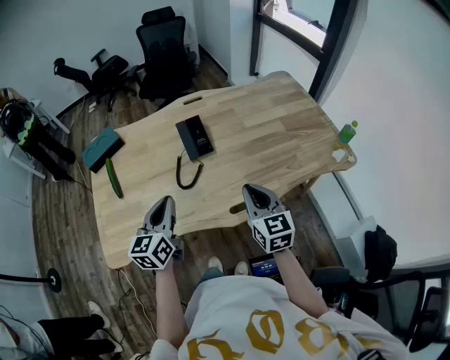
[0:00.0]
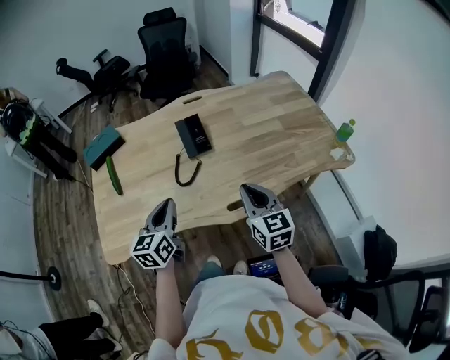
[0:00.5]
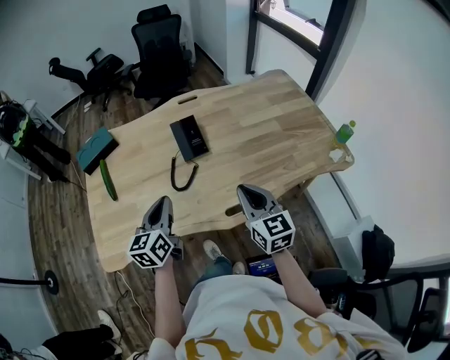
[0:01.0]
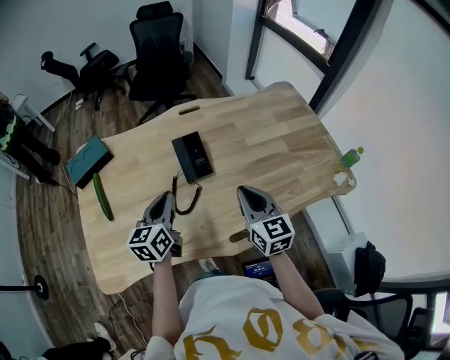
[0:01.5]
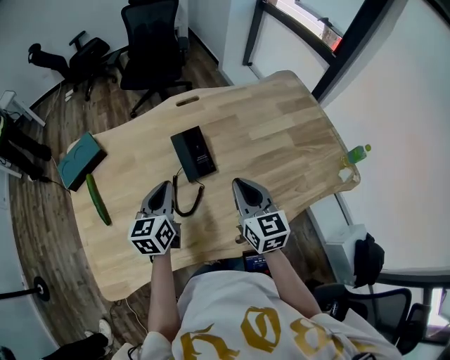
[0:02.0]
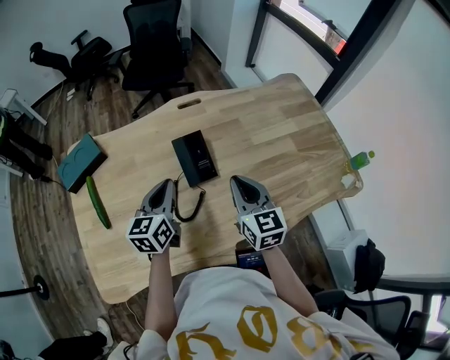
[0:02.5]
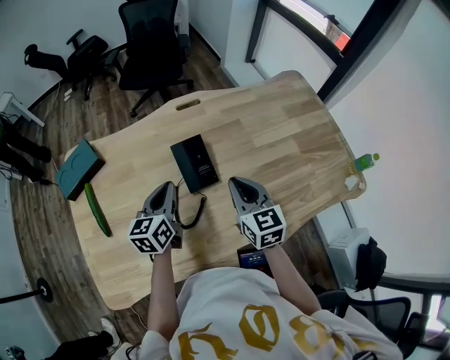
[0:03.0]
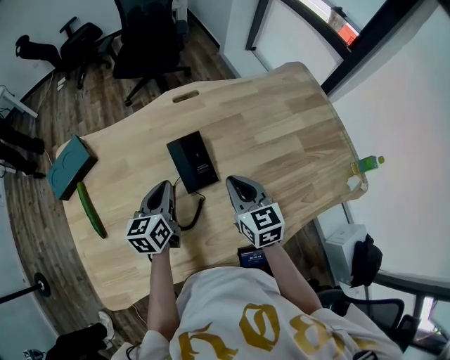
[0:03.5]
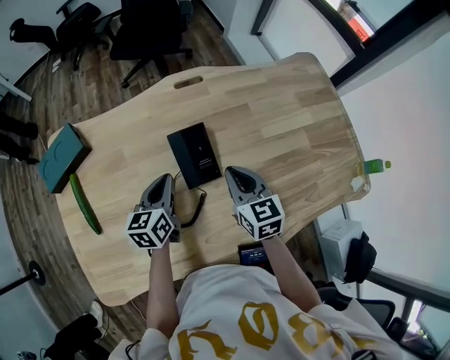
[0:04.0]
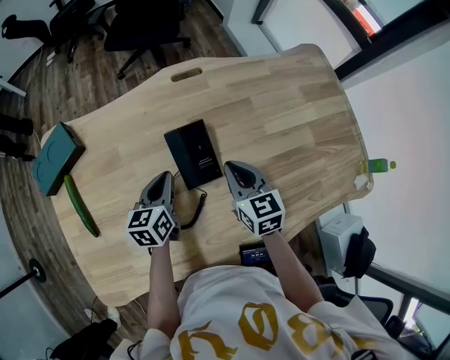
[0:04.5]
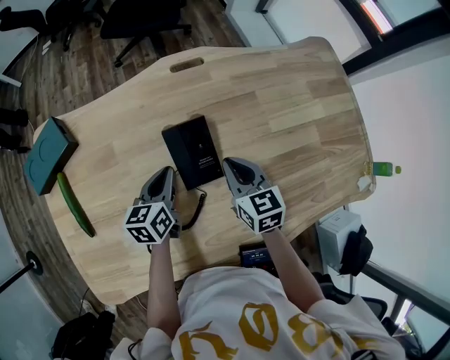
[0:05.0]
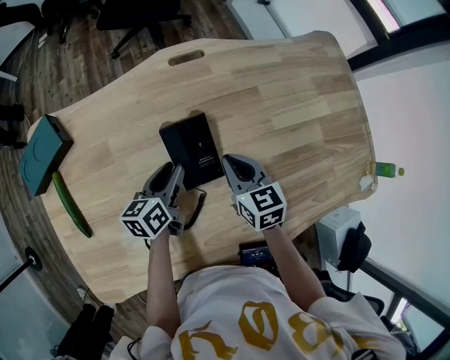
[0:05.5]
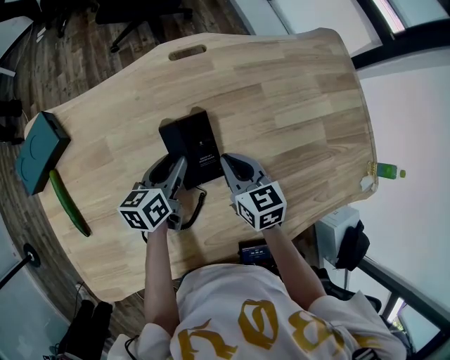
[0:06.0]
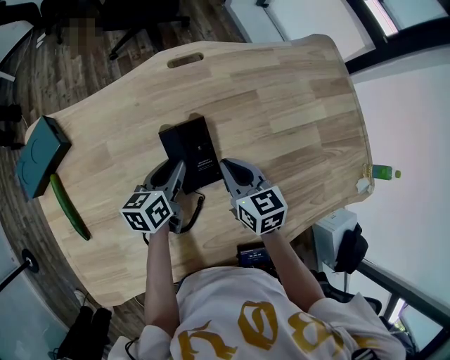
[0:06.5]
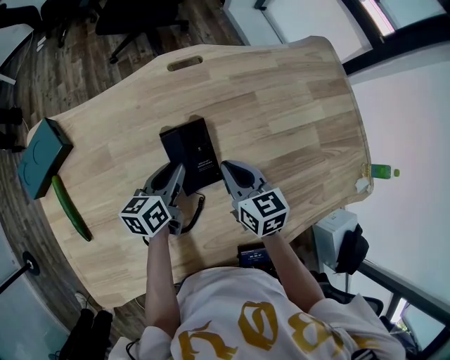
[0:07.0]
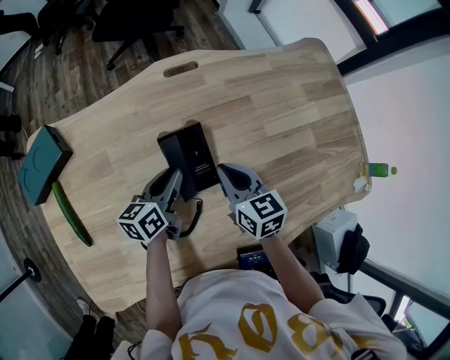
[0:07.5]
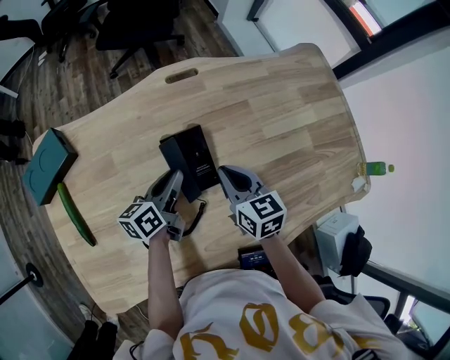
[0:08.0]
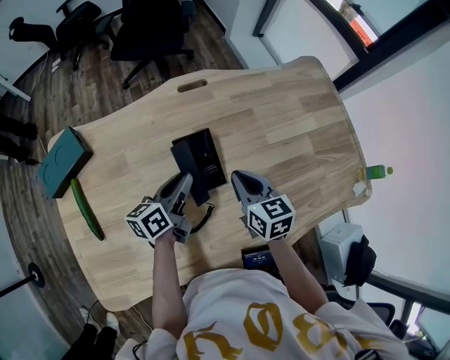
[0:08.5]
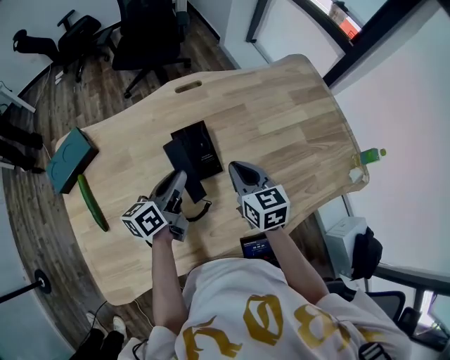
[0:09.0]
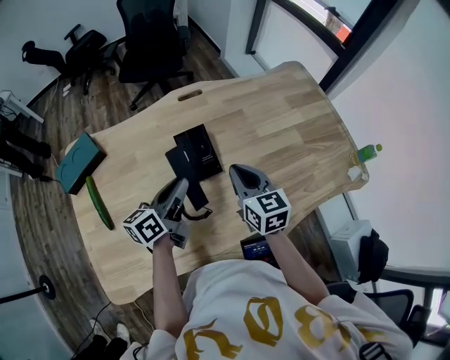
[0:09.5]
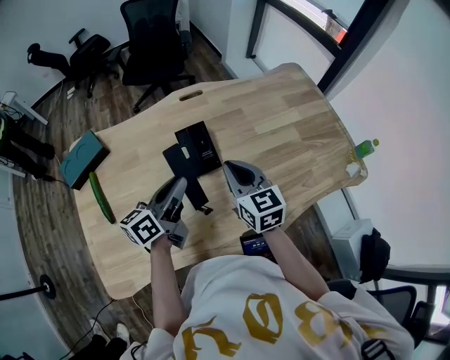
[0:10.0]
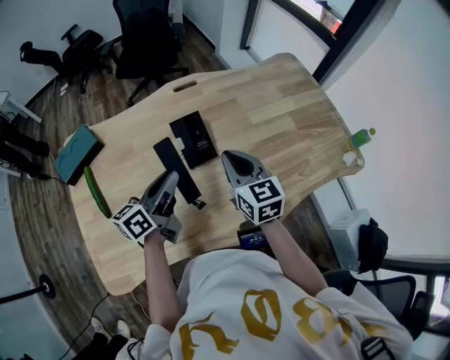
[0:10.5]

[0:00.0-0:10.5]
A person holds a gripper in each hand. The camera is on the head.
0:00.0 to 0:02.0: The grippers both shift forward by some 15 cm.
0:02.0 to 0:04.0: The right gripper goes approximately 15 cm forward and downward. The left gripper goes approximately 10 cm downward and forward.
0:04.0 to 0:06.5: The grippers both shift downward by approximately 5 cm. The left gripper opens its fingers.
0:06.5 to 0:08.5: The grippers both shift upward by roughly 5 cm.
0:08.5 to 0:10.5: The left gripper travels backward and upward by some 15 cm, while the right gripper moves upward and backward, approximately 10 cm.

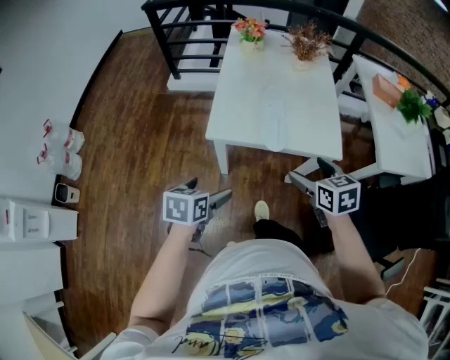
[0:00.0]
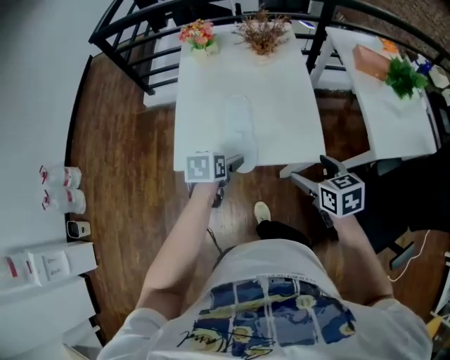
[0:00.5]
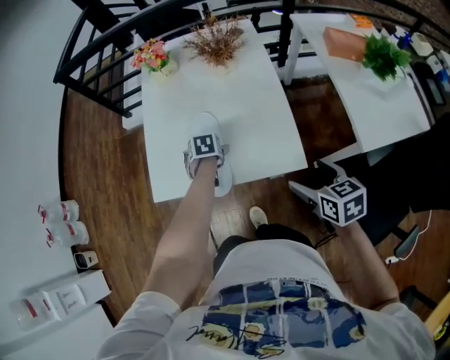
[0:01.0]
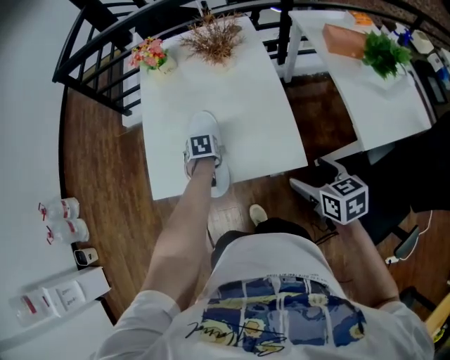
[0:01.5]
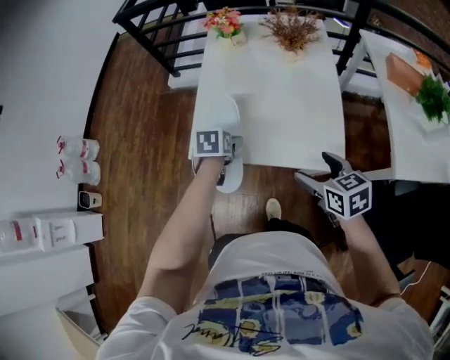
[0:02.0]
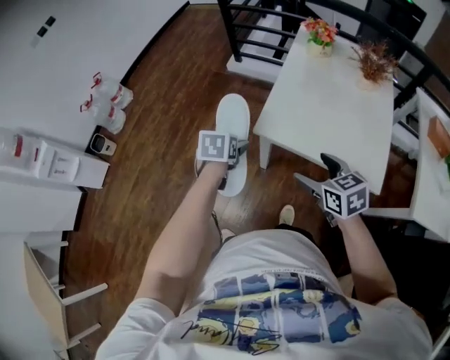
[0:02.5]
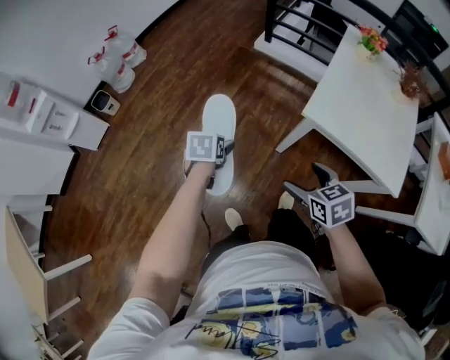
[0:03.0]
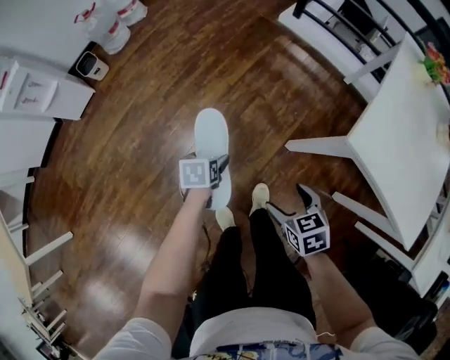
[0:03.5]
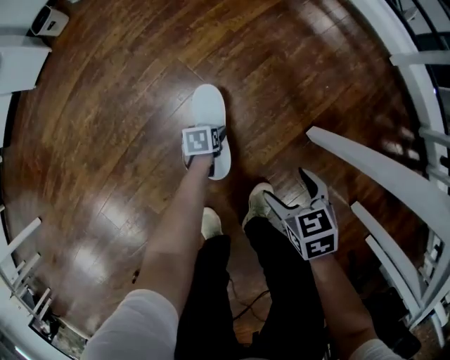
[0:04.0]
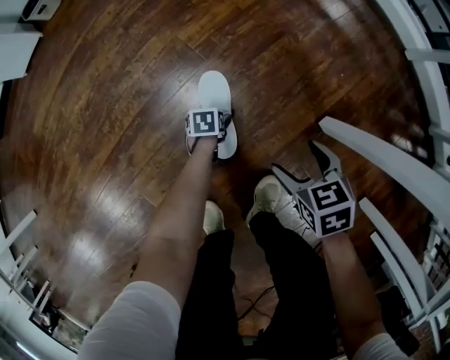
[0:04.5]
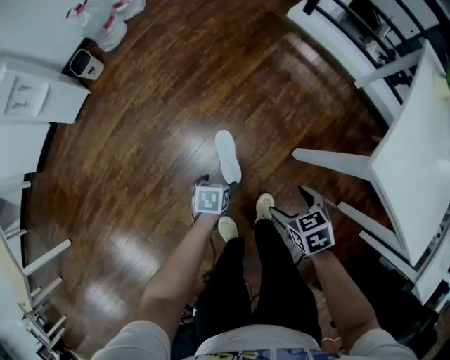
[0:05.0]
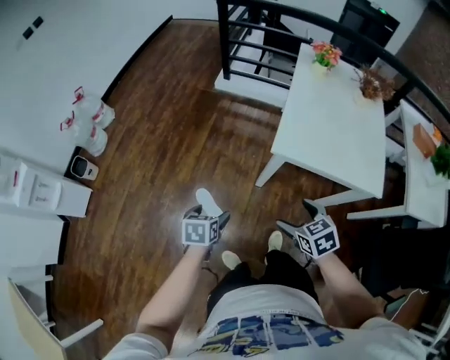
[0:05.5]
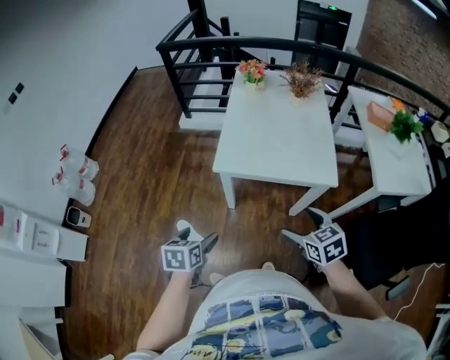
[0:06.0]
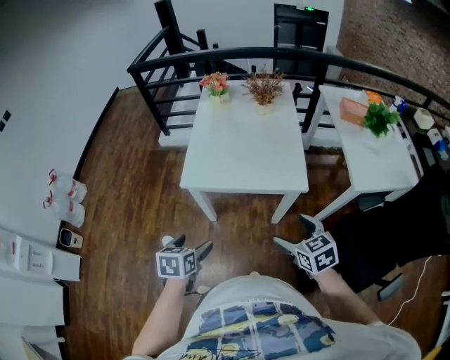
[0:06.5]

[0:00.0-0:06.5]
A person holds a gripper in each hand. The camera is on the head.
0:00.0 to 0:02.0: The left gripper is displaced forward and to the right by roughly 30 cm. The right gripper travels to the right and forward by some 20 cm.
0:02.0 to 0:04.5: The two grippers travel together, roughly 60 cm. The grippers both shift downward by some 80 cm. The left gripper rotates around the line of its fingers by approximately 50 degrees, counterclockwise from behind; the right gripper changes its angle by some 50 degrees.
0:04.5 to 0:06.5: The pair of grippers is taken approximately 60 cm. Both grippers move upward, some 80 cm. The right gripper rotates some 50 degrees. Meanwhile the left gripper rolls clockwise, seen from behind, by some 50 degrees.

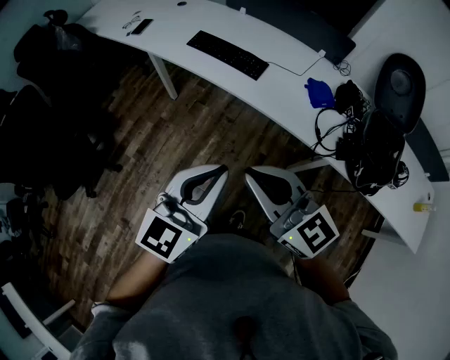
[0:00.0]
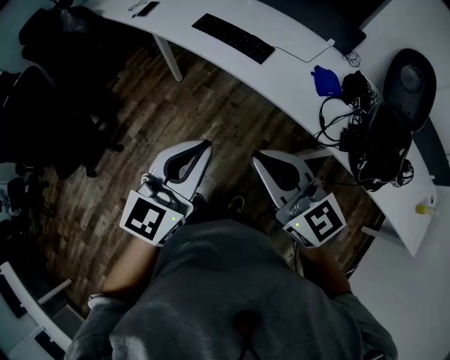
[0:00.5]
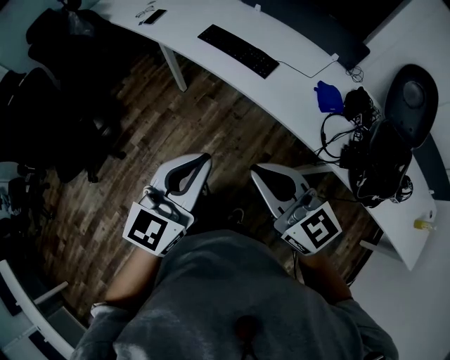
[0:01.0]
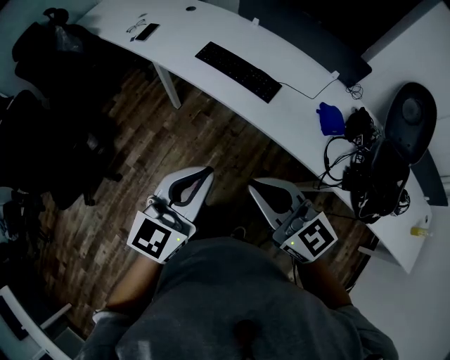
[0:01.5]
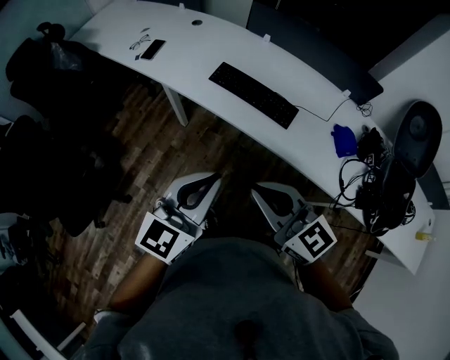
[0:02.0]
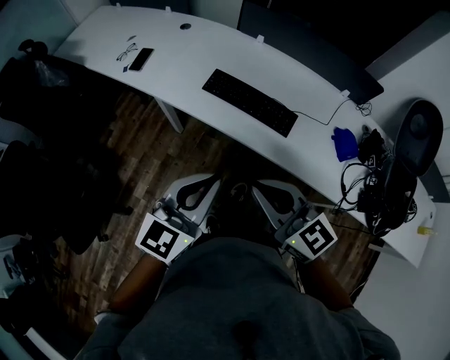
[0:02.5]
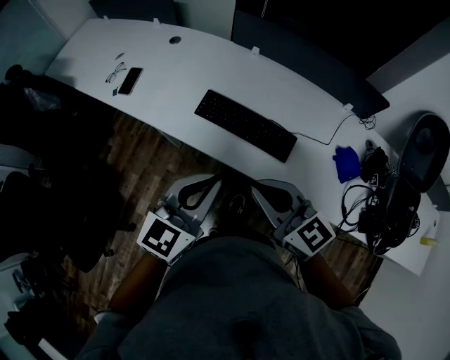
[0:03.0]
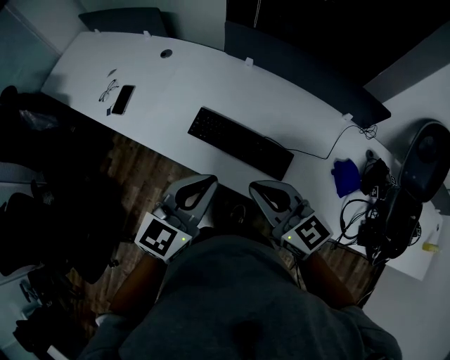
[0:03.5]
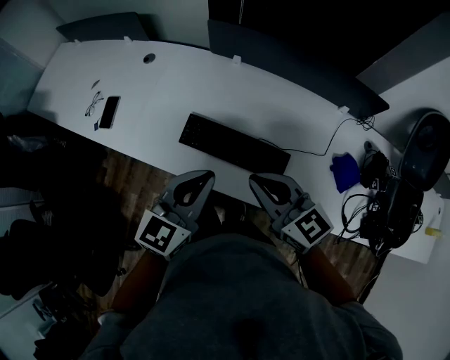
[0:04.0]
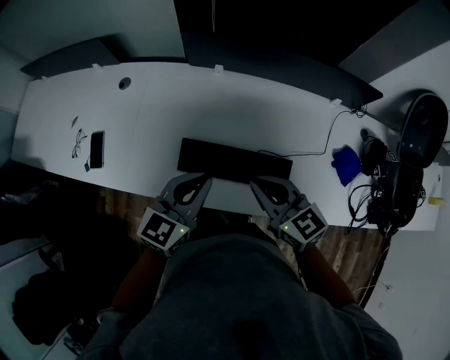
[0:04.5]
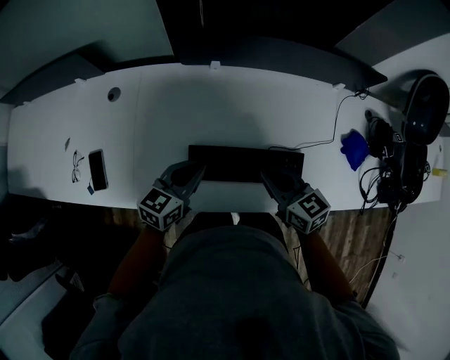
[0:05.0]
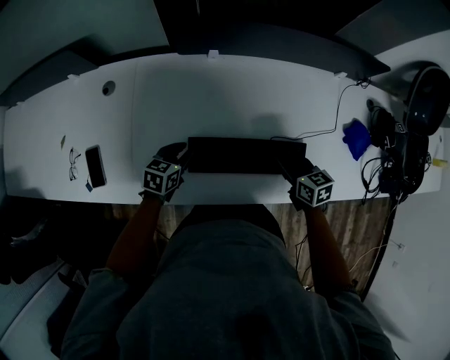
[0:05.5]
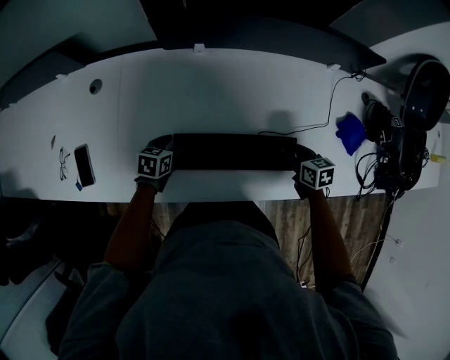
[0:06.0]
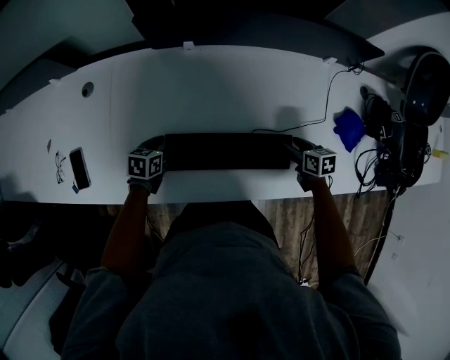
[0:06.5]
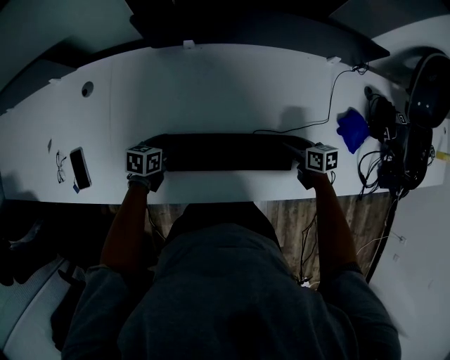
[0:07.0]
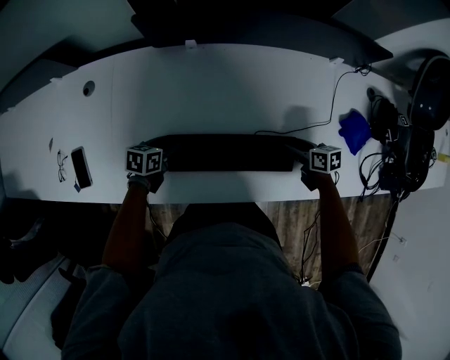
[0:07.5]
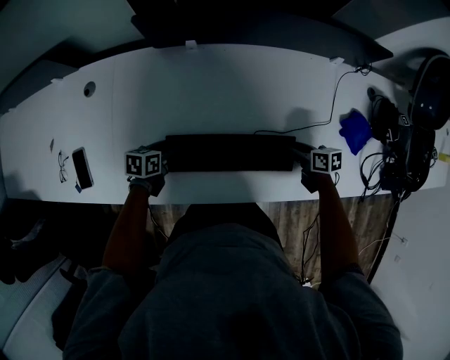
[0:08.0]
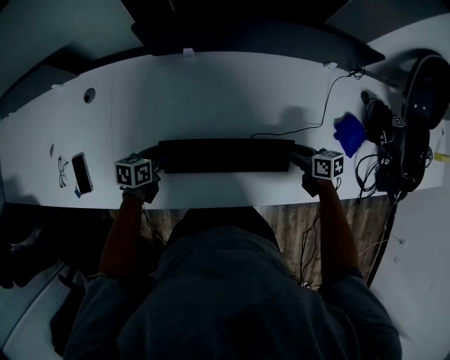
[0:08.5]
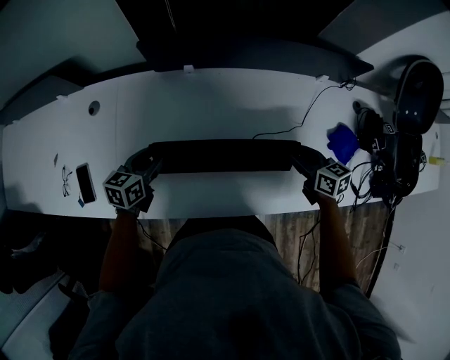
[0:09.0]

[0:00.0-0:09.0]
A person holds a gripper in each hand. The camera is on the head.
0:00.0 to 0:02.0: Both grippers move forward and to the left, approximately 25 cm.
0:02.0 to 0:04.5: Both grippers are carried forward, some 40 cm. The right gripper turns by about 30 degrees; the left gripper turns by about 20 degrees.
0:04.5 to 0:07.0: The left gripper travels downward by approximately 30 cm, angles its fingers downward, by approximately 30 degrees, and opens. Meanwhile the right gripper travels downward and to the right by roughly 35 cm, swivels some 50 degrees, and opens up.
0:07.0 to 0:09.0: Both grippers move upward, about 15 cm. The right gripper closes; the left gripper closes.

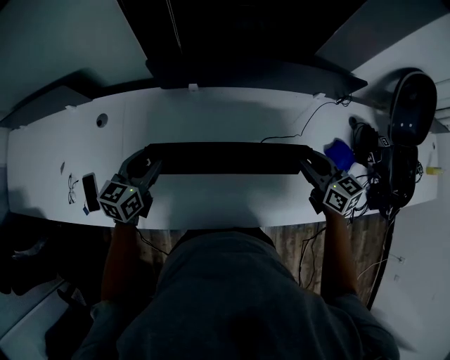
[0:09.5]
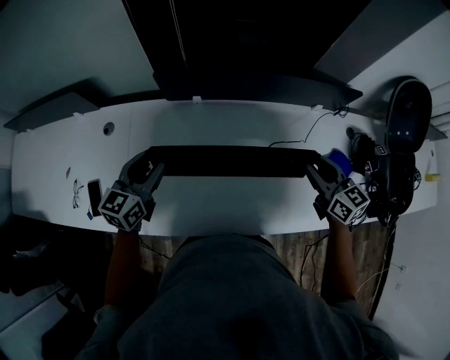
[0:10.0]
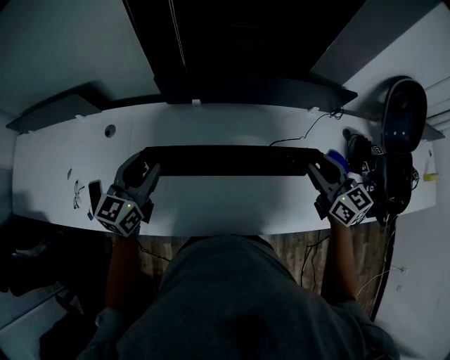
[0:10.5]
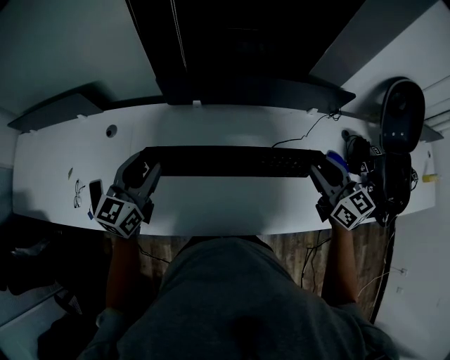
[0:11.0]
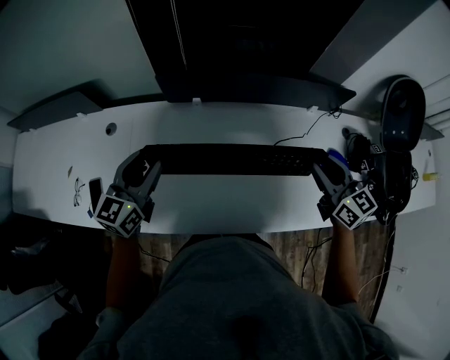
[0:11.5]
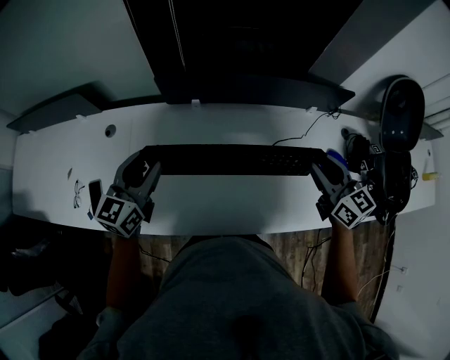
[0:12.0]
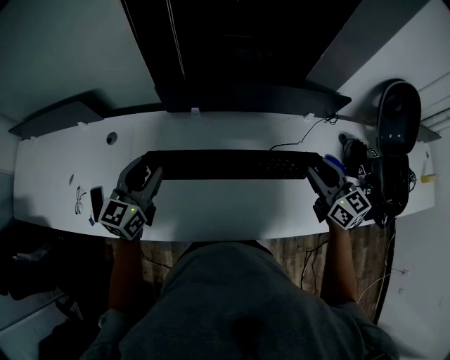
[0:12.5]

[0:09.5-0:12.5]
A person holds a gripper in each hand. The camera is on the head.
0:09.5 to 0:11.0: Both grippers travel together upward, roughly 10 cm.
0:11.0 to 0:12.5: Both grippers stay put.
